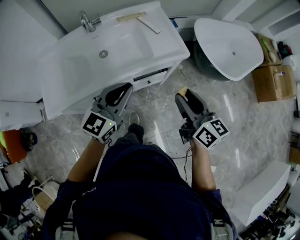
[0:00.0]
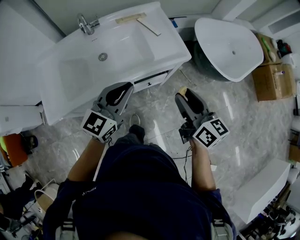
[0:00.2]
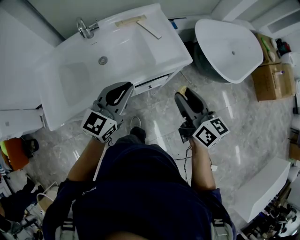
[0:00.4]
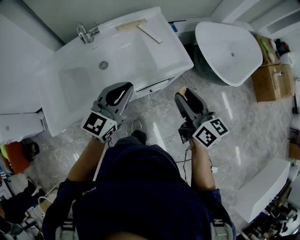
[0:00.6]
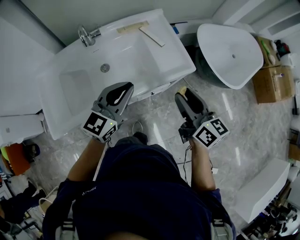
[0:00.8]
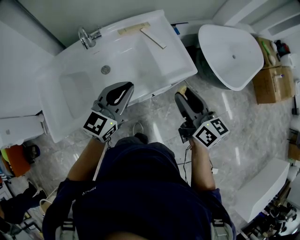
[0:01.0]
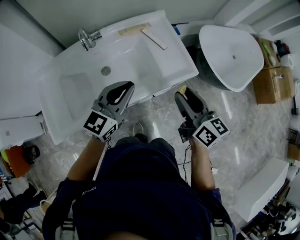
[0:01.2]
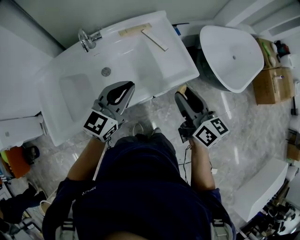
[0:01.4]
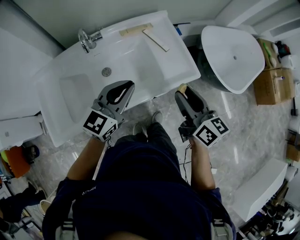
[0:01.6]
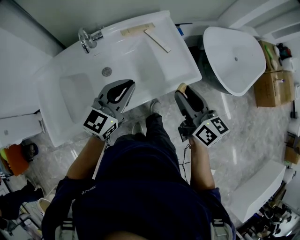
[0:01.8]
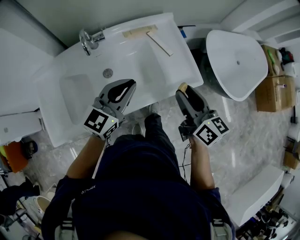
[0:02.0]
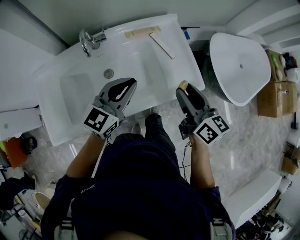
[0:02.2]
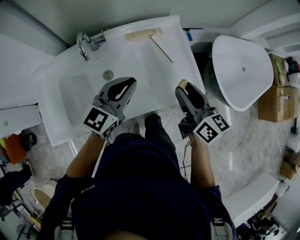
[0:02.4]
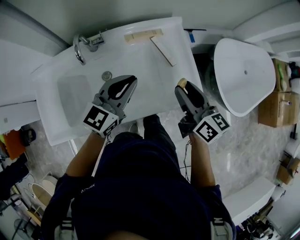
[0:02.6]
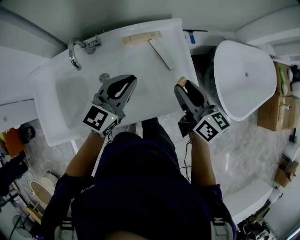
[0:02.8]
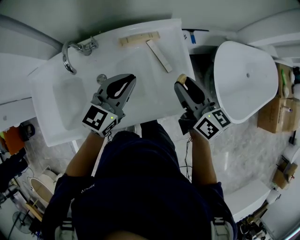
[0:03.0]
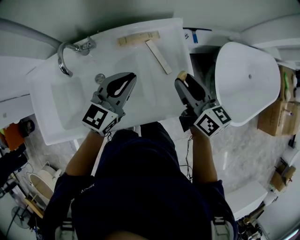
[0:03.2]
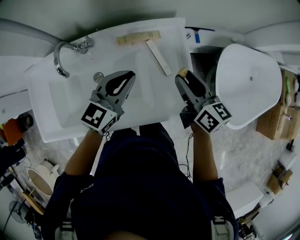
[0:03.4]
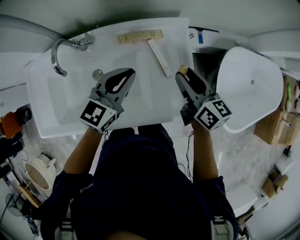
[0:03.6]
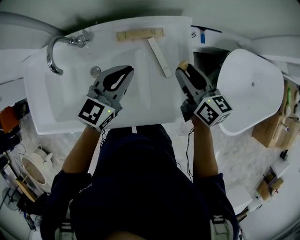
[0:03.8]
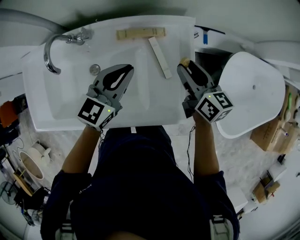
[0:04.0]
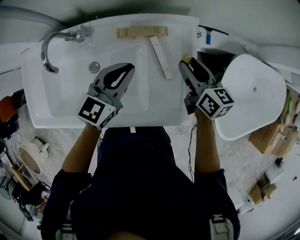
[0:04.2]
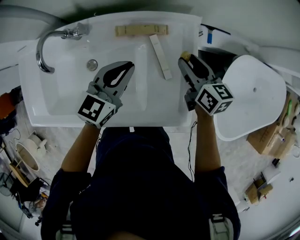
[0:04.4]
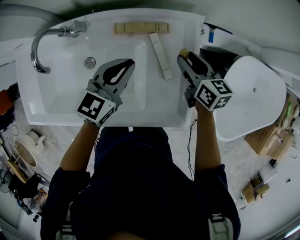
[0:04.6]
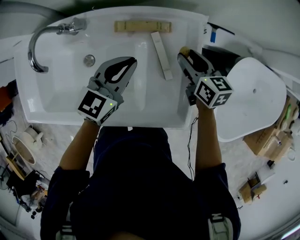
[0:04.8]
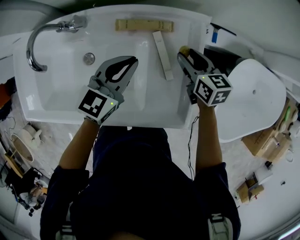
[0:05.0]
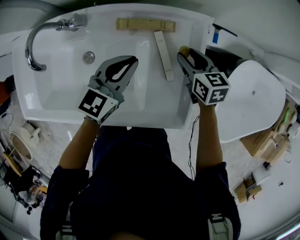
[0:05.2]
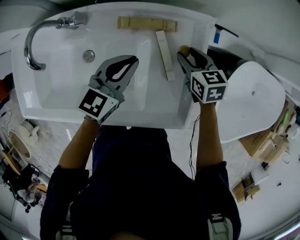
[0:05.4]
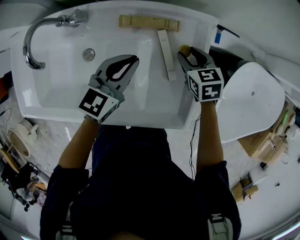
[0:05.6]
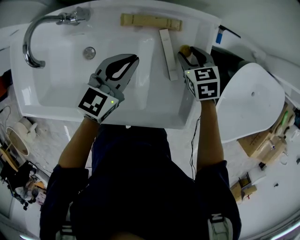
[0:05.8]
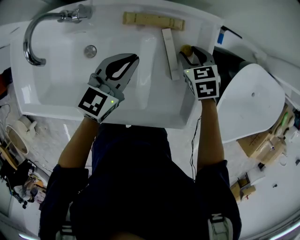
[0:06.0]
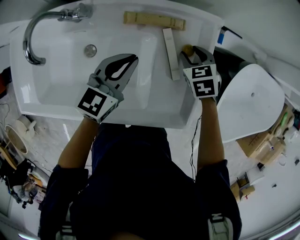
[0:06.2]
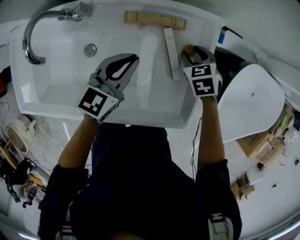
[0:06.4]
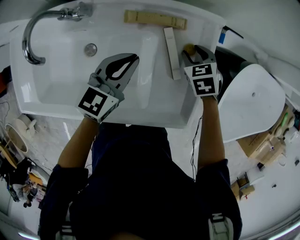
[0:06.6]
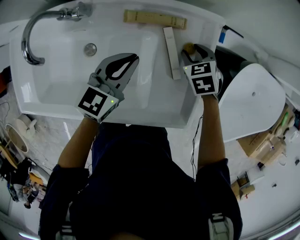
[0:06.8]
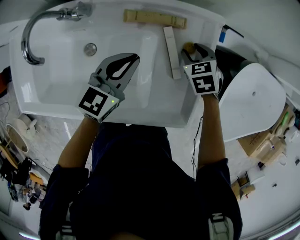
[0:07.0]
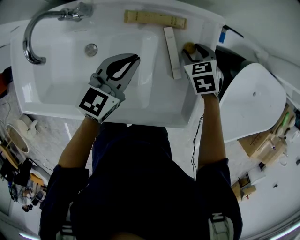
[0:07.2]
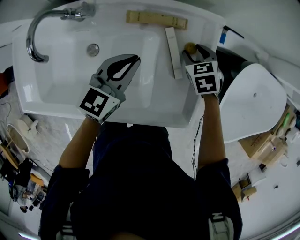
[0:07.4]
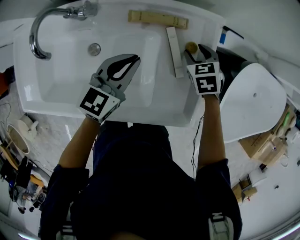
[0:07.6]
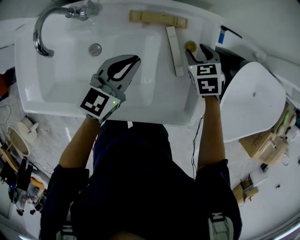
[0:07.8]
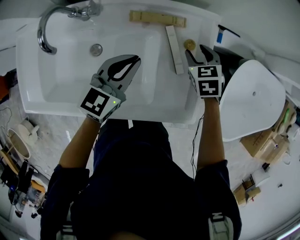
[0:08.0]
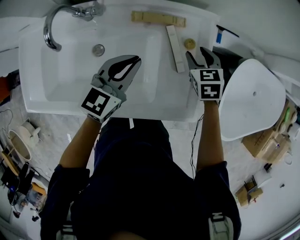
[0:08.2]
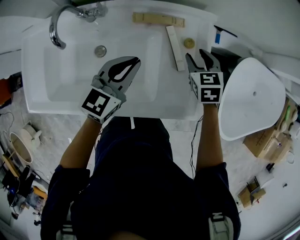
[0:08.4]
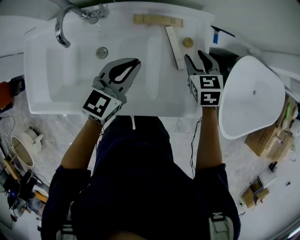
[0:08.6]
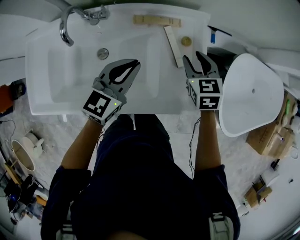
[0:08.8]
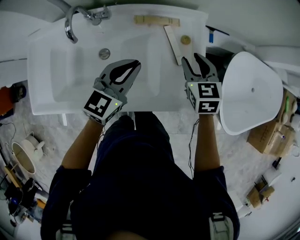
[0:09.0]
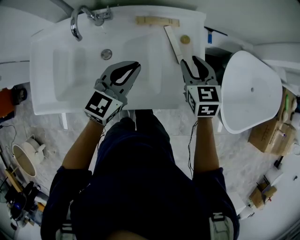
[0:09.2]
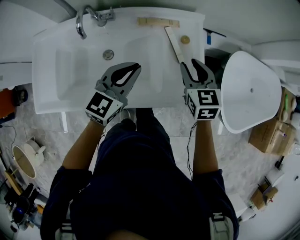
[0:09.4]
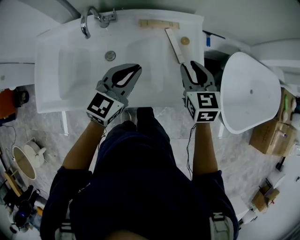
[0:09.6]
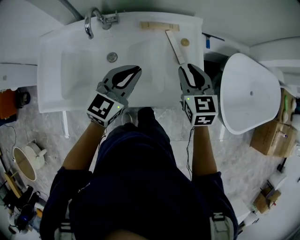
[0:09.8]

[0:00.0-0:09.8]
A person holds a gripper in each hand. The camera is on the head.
0:00.0 to 0:01.4: The grippers both shift forward and to the left by about 15 cm.
0:01.4 to 0:02.8: The two grippers go about 20 cm forward.
0:02.8 to 0:04.2: The left gripper is displaced forward and downward by roughly 15 cm; the right gripper is displaced forward and downward by approximately 20 cm.
0:04.2 to 0:05.6: The left gripper shifts some 5 cm downward; the right gripper heads downward, covering some 10 cm, and swivels roughly 40 degrees.
0:05.6 to 0:07.0: The grippers make only small movements.
0:07.0 to 0:08.4: The grippers both shift upward by roughly 5 cm.
0:08.4 to 0:09.8: The left gripper travels backward and upward by roughly 15 cm, while the right gripper travels backward and upward by about 20 cm, and changes its angle by about 20 degrees.

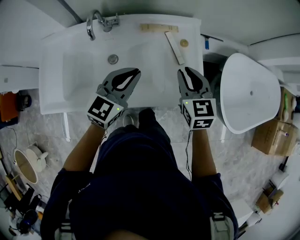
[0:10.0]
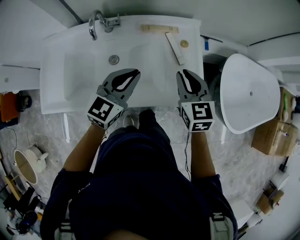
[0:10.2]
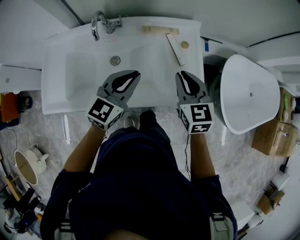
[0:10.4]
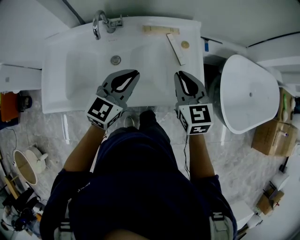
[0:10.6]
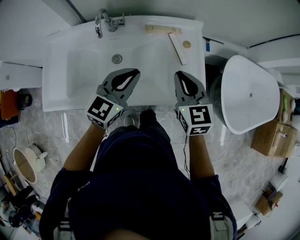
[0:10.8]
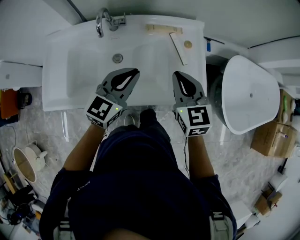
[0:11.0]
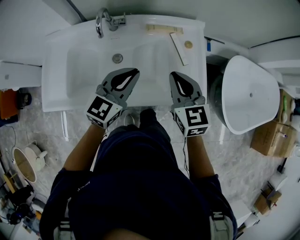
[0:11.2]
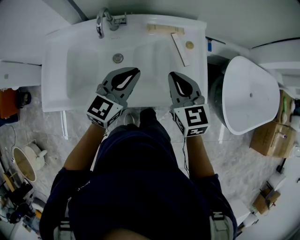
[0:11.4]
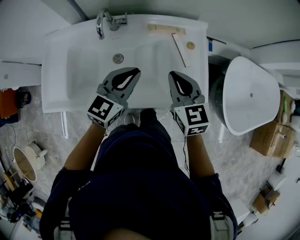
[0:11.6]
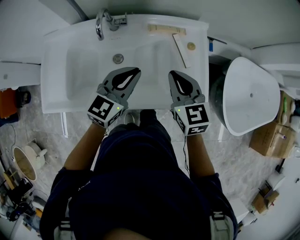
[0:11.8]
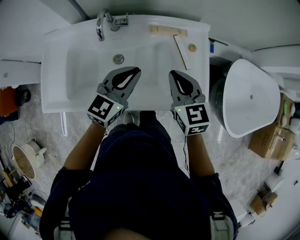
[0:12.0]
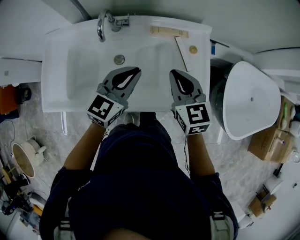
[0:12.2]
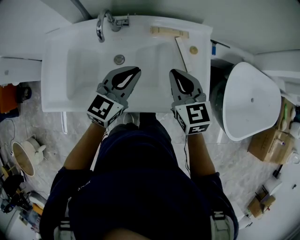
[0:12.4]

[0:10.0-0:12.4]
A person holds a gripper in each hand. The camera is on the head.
0:10.0 to 0:11.2: The right gripper goes some 5 cm to the left.
0:11.2 to 0:12.4: The right gripper shifts by roughly 5 cm.

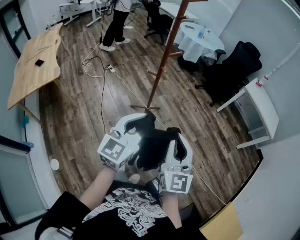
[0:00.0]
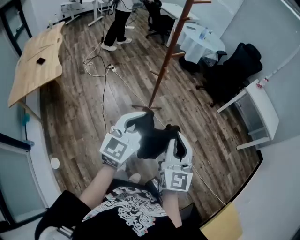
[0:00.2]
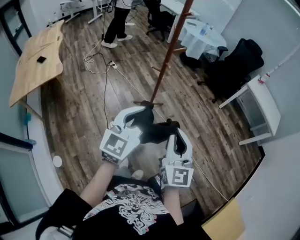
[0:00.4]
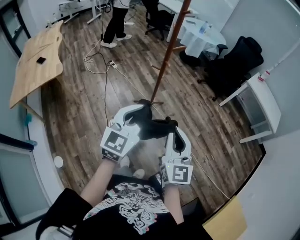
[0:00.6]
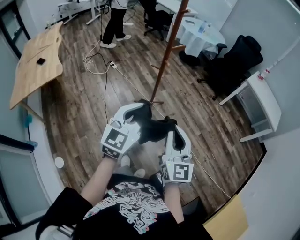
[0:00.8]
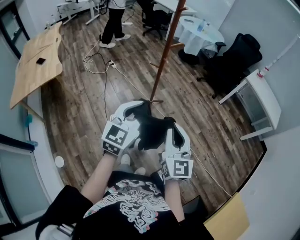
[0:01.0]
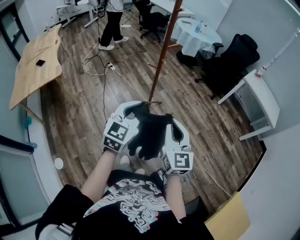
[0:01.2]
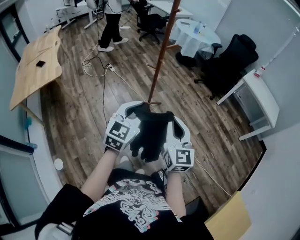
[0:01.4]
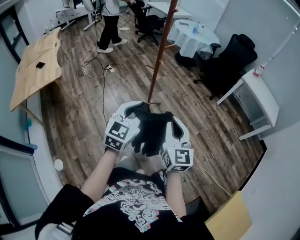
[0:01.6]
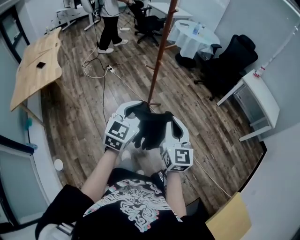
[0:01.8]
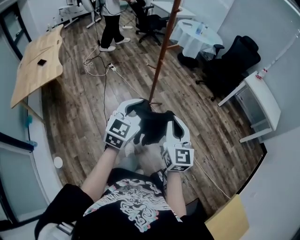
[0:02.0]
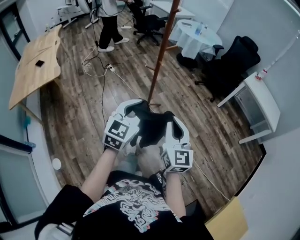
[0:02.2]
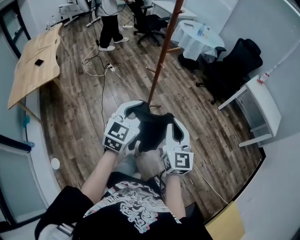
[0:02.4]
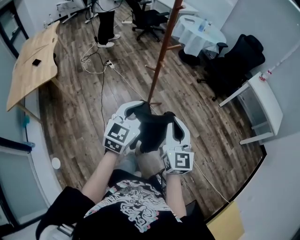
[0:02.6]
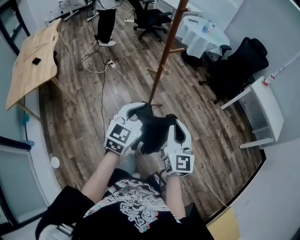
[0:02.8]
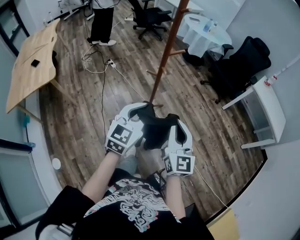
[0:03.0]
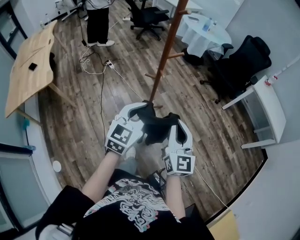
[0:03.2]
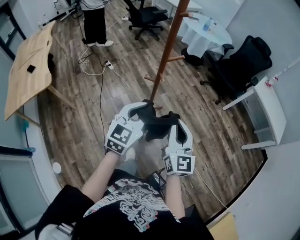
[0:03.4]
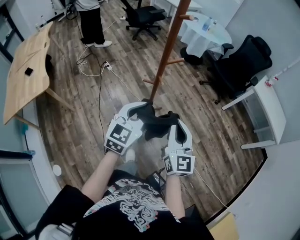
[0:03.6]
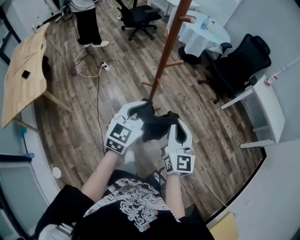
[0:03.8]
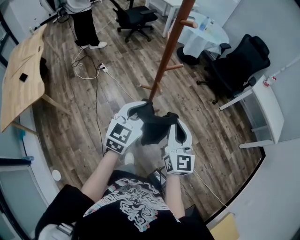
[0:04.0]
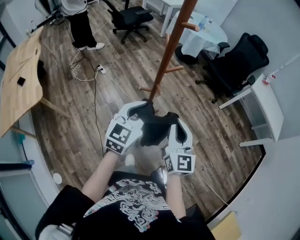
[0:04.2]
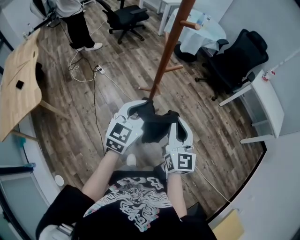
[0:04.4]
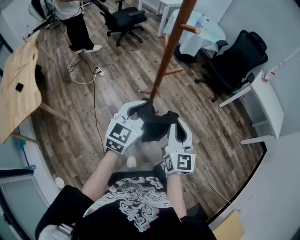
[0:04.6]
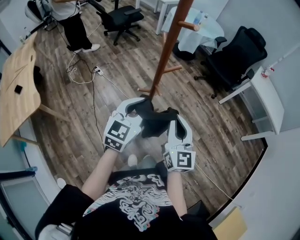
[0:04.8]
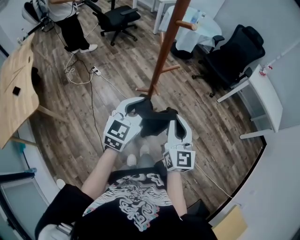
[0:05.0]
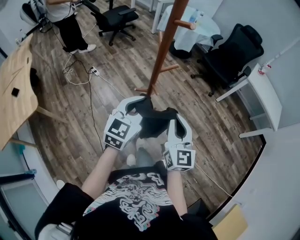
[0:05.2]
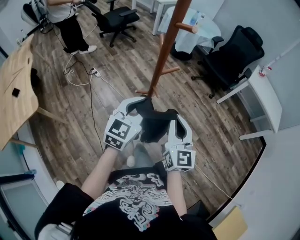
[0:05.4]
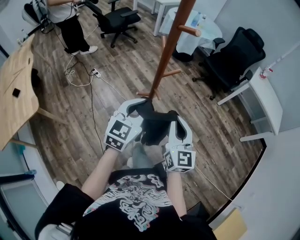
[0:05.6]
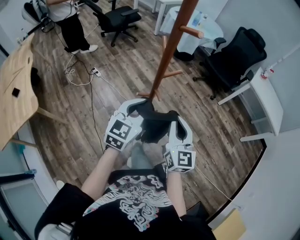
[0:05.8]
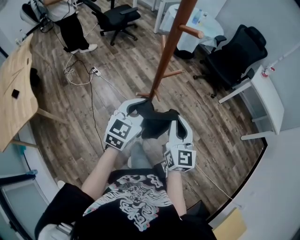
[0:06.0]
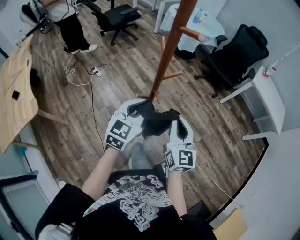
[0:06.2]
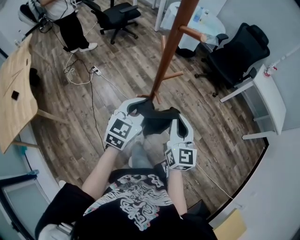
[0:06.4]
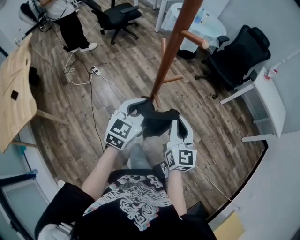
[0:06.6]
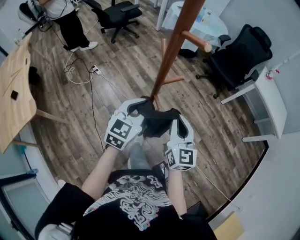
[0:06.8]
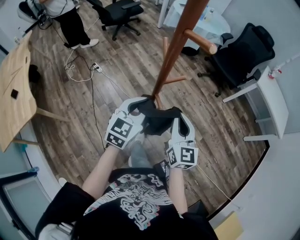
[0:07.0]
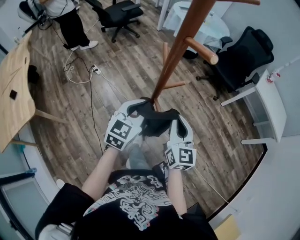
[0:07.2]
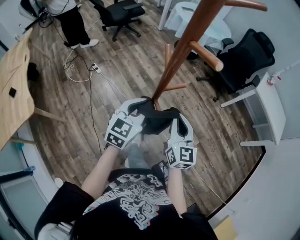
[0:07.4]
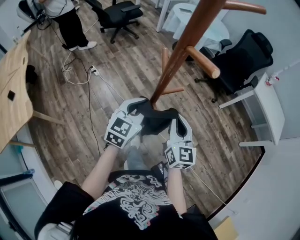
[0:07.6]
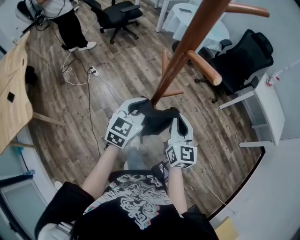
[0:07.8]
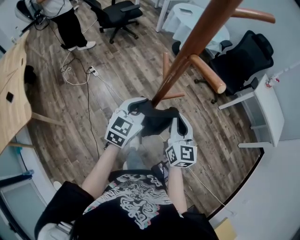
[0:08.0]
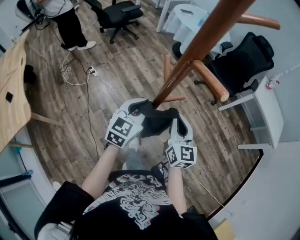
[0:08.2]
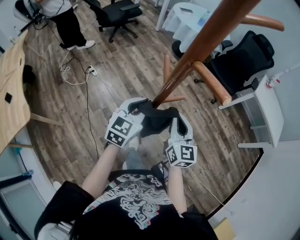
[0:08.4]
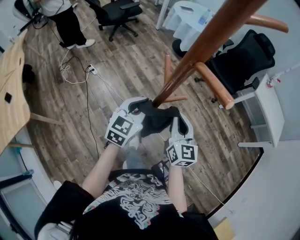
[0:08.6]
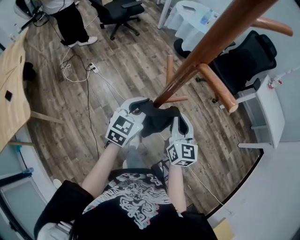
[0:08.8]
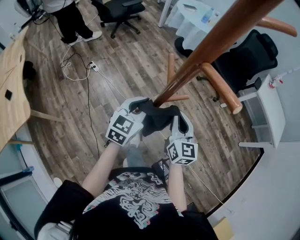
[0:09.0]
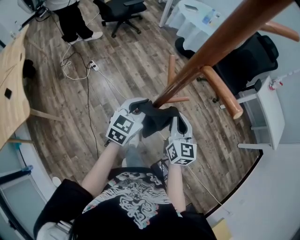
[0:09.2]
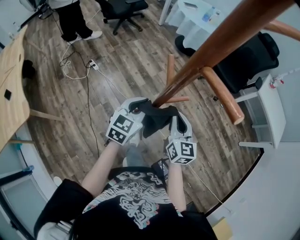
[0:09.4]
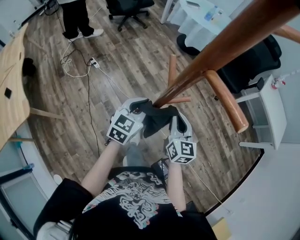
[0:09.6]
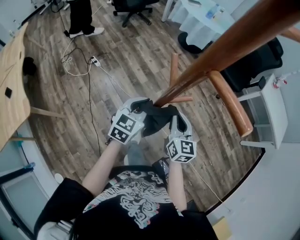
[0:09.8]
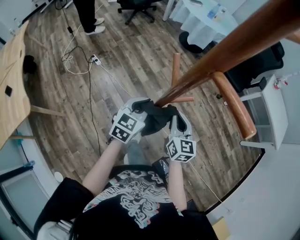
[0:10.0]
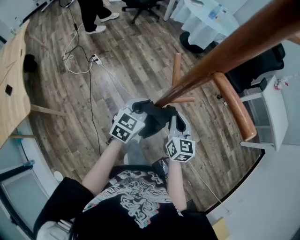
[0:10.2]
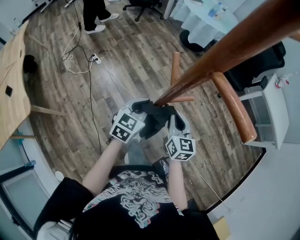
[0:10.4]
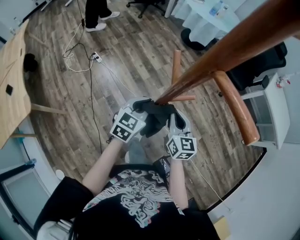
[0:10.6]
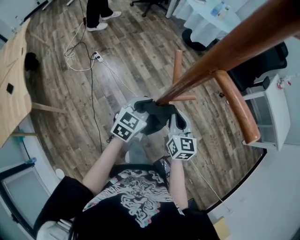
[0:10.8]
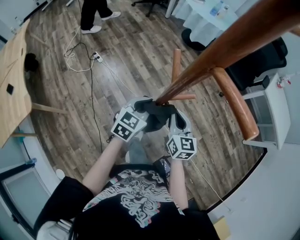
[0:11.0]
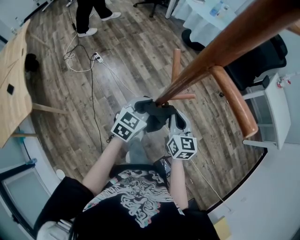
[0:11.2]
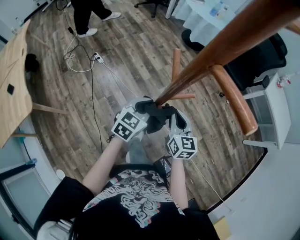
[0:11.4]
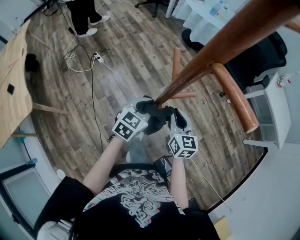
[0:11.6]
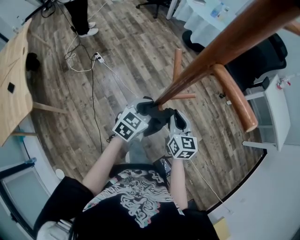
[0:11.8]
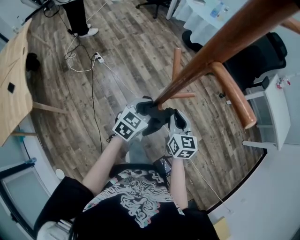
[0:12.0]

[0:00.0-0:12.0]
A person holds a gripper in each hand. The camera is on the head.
0:00.0 to 0:01.6: The left gripper ends up some 5 cm from where it was.
0:01.6 to 0:03.0: The two grippers go roughly 15 cm forward.
0:03.0 to 0:04.4: The two grippers go roughly 15 cm forward.
0:04.4 to 0:06.0: Both grippers move forward, about 5 cm.
0:06.0 to 0:07.6: The two grippers go about 10 cm forward.
0:07.6 to 0:09.0: The left gripper moves some 5 cm, while the right gripper shifts roughly 5 cm forward.
0:09.0 to 0:10.4: Both grippers travel together downward, some 5 cm.
0:10.4 to 0:12.0: There are only small adjustments of the grippers.
